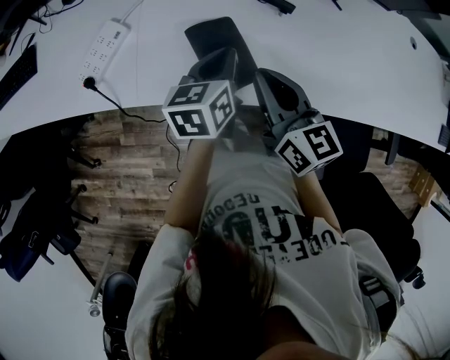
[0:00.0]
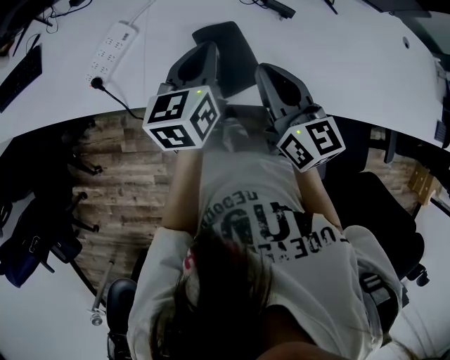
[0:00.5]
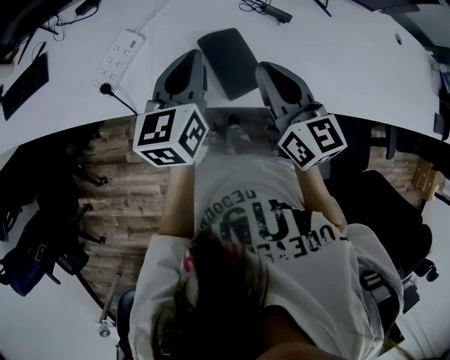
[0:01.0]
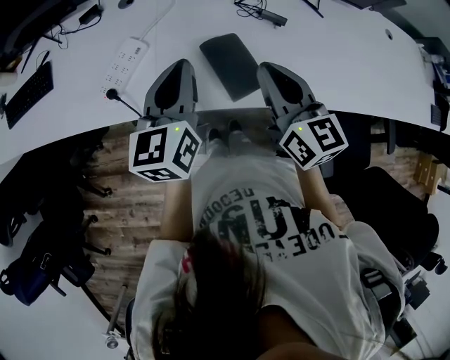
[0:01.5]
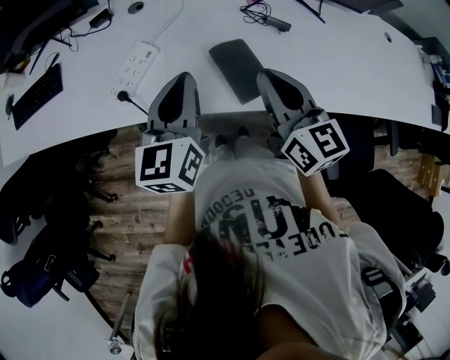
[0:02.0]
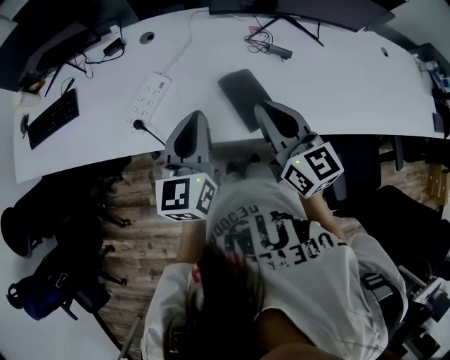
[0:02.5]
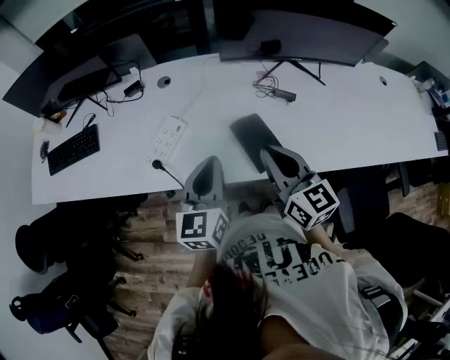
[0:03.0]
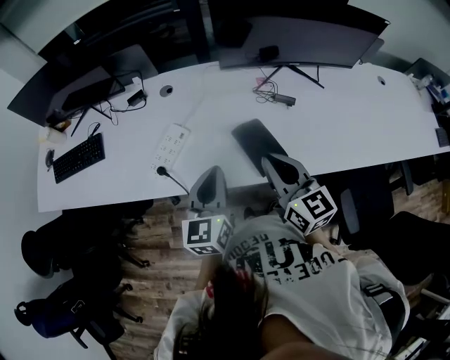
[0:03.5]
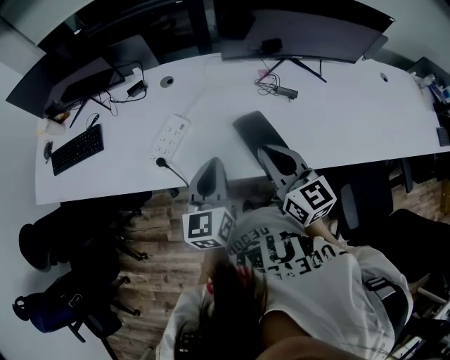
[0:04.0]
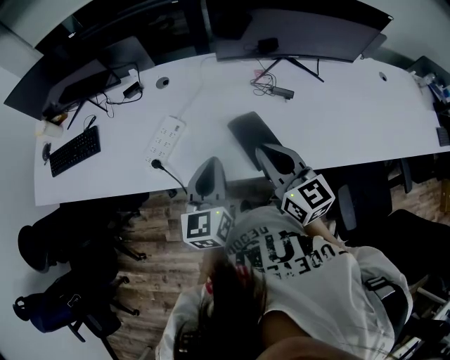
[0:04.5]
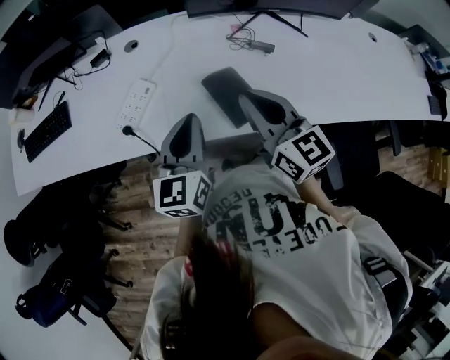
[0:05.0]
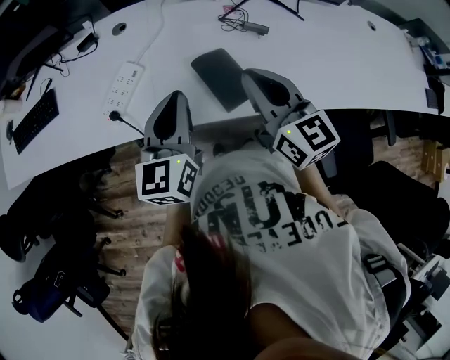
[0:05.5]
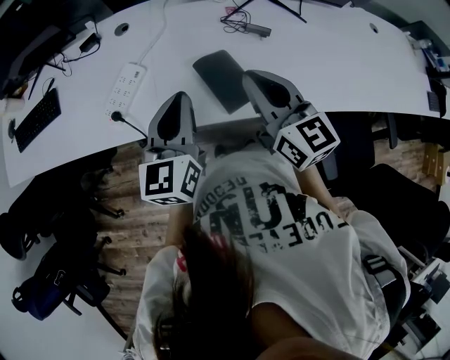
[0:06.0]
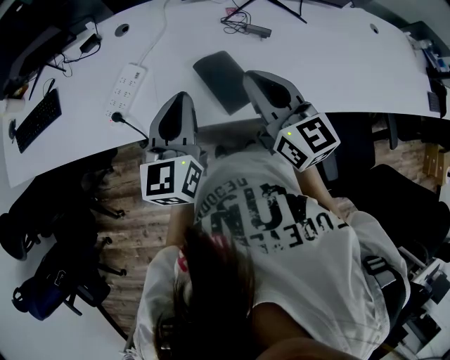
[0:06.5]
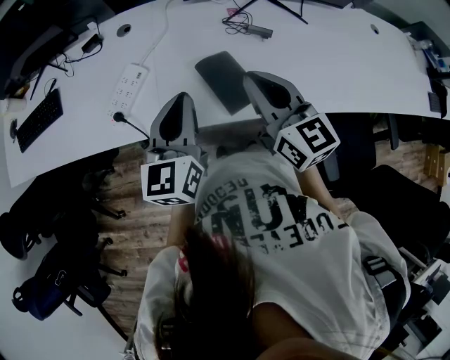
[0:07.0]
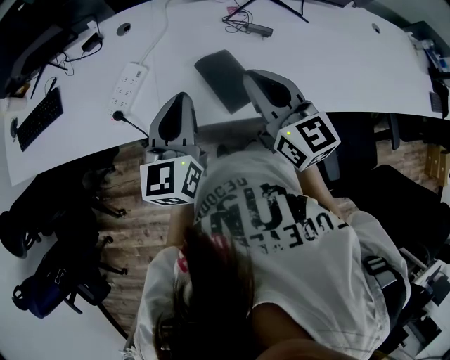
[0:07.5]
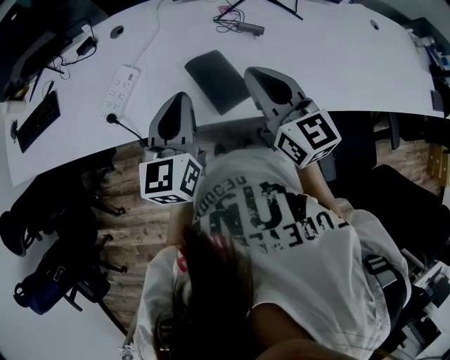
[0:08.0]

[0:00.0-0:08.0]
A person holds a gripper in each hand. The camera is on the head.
0:00.0 to 0:02.0: The right gripper goes roughly 10 cm upward and to the left. The left gripper moves to the left and upward, some 20 cm, and swivels some 30 degrees.
0:02.0 to 0:04.0: The grippers move only a little.
0:04.0 to 0:06.0: The right gripper moves to the right, roughly 5 cm.
0:06.0 to 0:08.0: The grippers stay close to where they were, moving slightly.

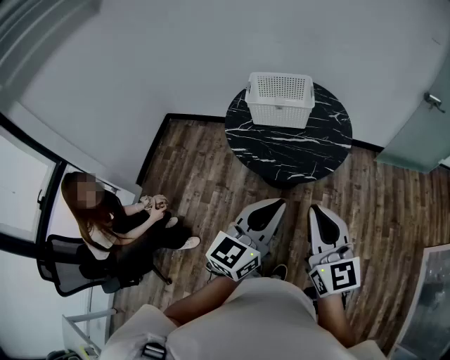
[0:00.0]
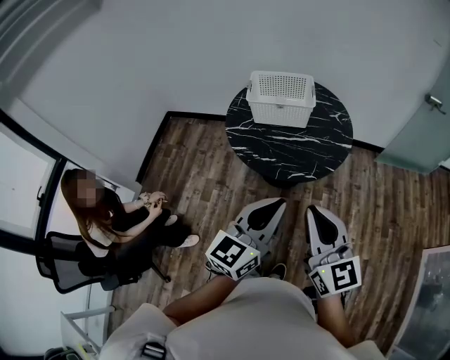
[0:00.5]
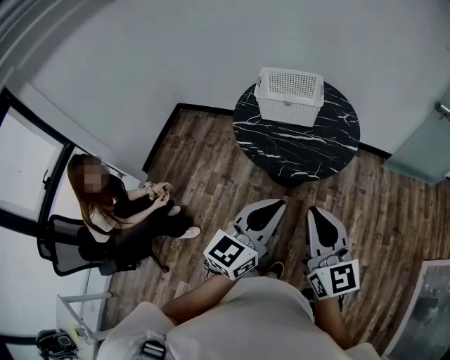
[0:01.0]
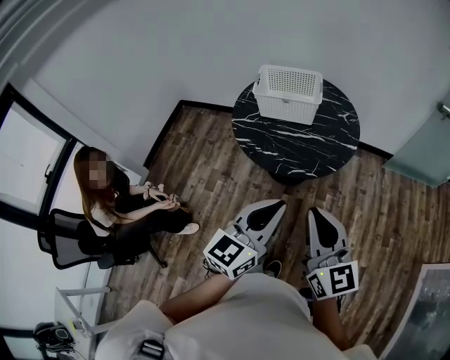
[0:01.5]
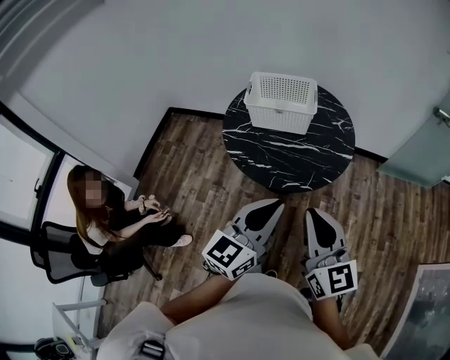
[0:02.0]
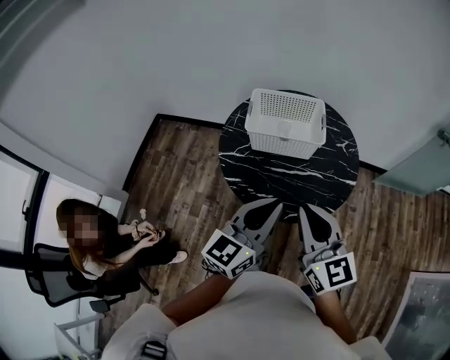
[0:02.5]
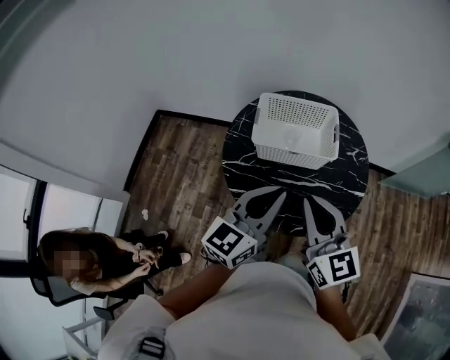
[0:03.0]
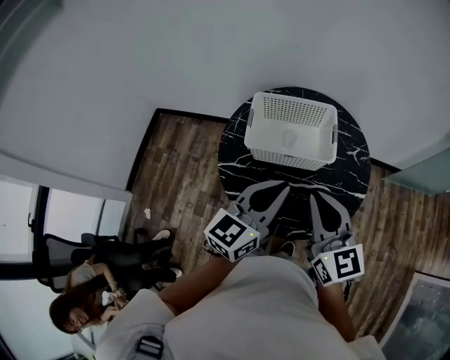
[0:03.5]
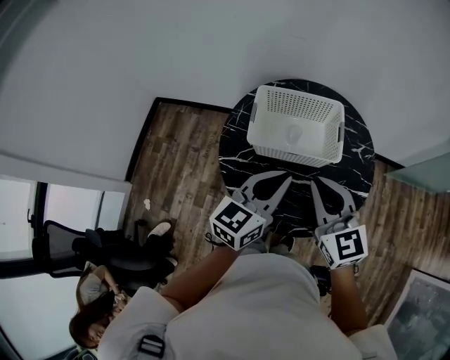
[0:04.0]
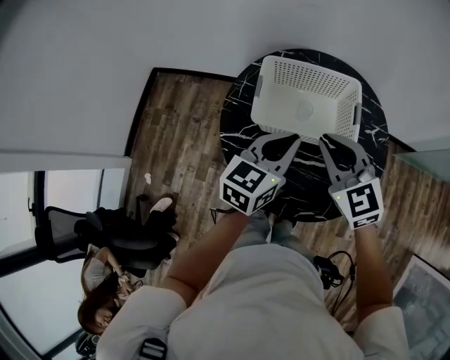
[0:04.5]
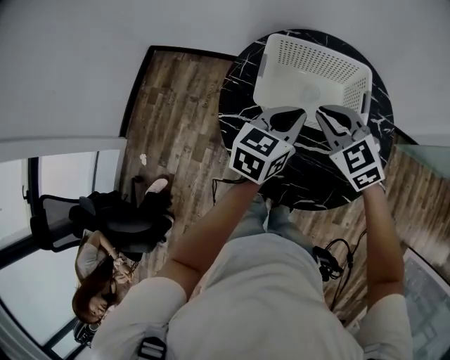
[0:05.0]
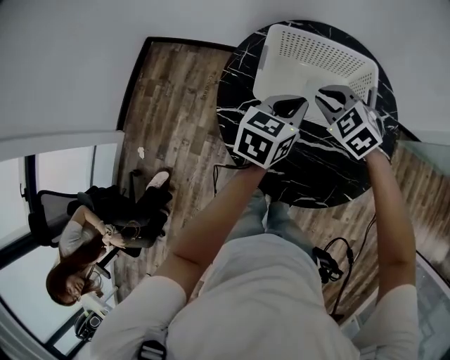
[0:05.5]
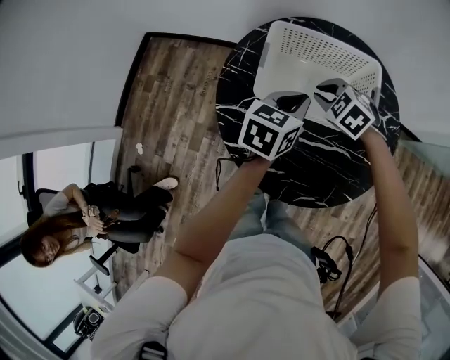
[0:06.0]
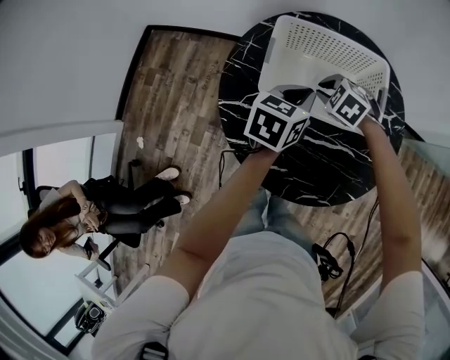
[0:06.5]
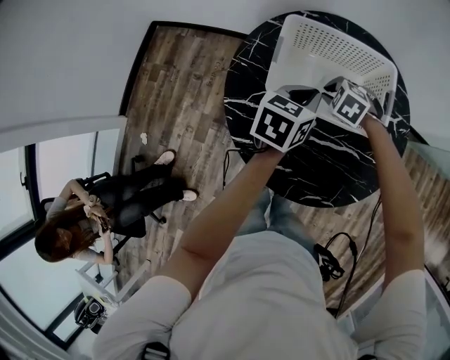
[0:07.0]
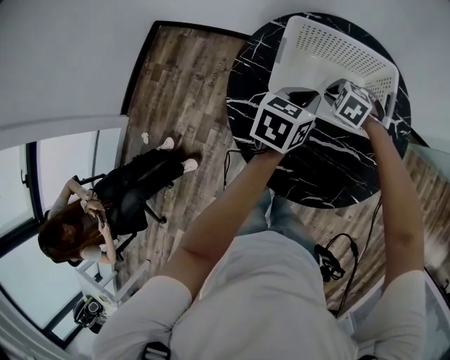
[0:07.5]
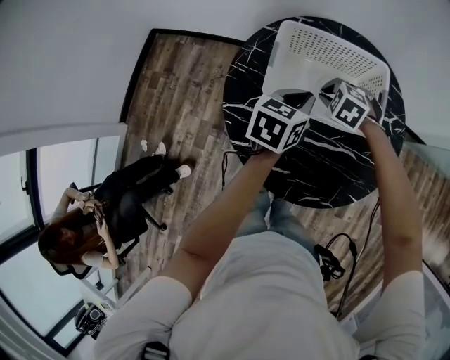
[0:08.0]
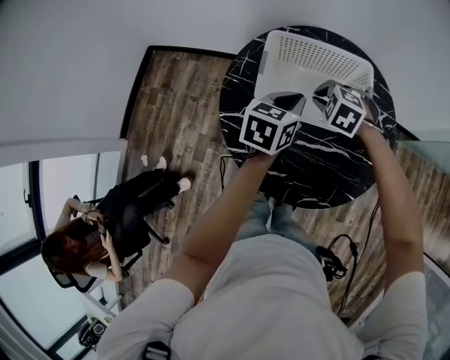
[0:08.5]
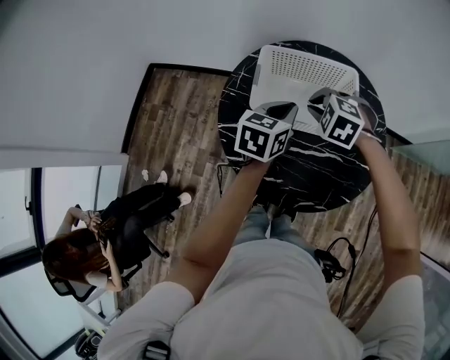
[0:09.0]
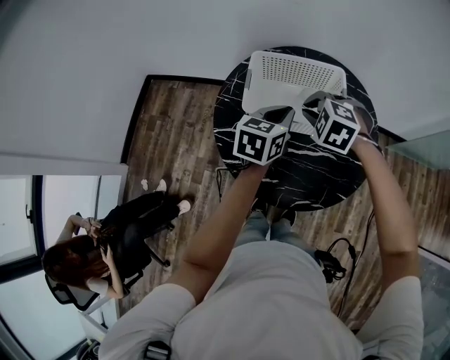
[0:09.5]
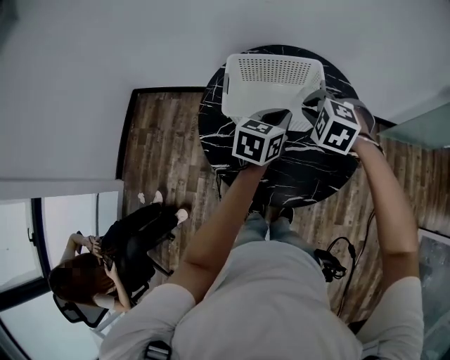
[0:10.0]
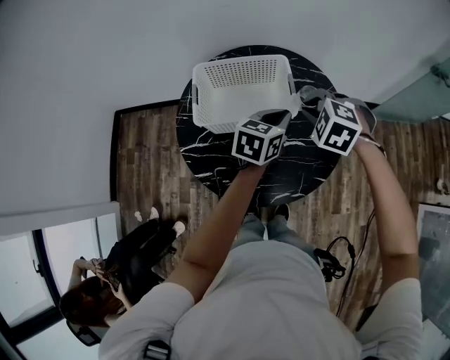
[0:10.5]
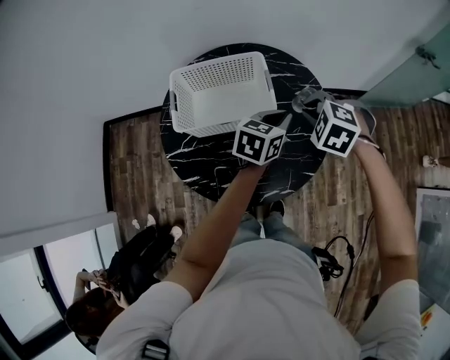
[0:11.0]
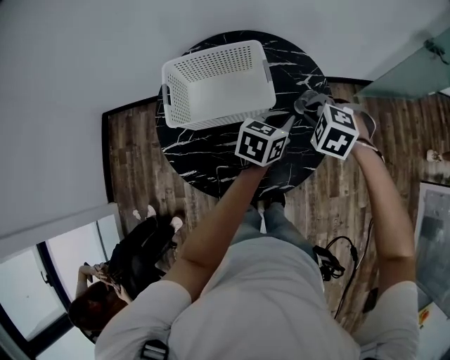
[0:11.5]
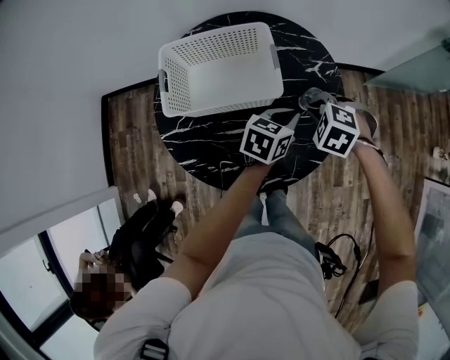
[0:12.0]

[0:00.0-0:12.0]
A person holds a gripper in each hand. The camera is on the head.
0:00.0 to 0:02.0: The grippers both shift forward by some 5 cm.
0:02.0 to 0:04.0: The two grippers go about 40 cm forward.
0:04.0 to 0:06.0: The two grippers go some 25 cm downward and forward. The left gripper changes its angle by roughly 20 degrees, while the right gripper angles its fingers downward, by roughly 50 degrees.
0:08.0 to 0:10.0: The left gripper shifts some 15 cm to the right, upward and backward. The right gripper travels upward, backward and to the right by roughly 20 cm.
0:10.0 to 0:12.0: The two grippers go roughly 20 cm to the right and downward.

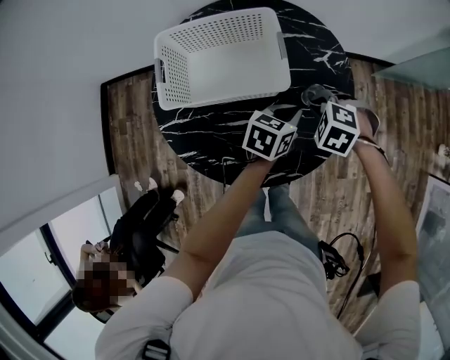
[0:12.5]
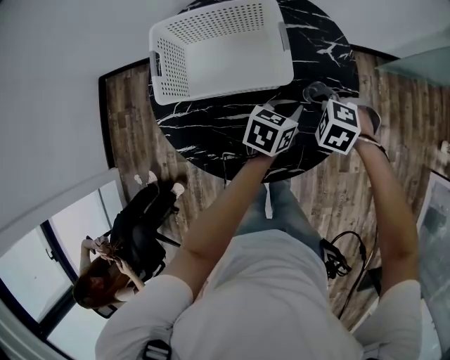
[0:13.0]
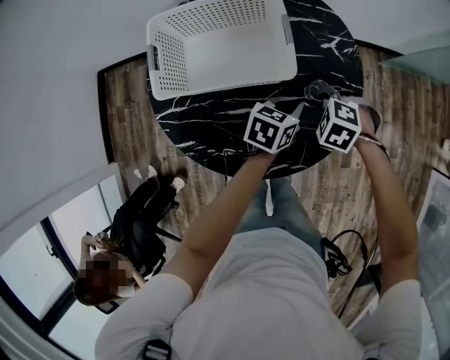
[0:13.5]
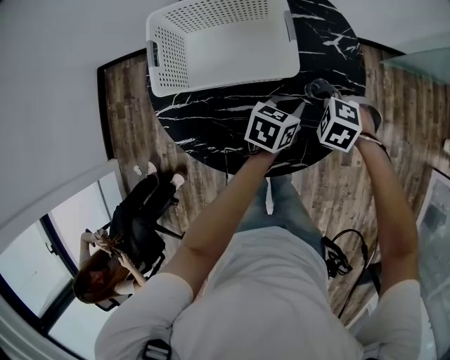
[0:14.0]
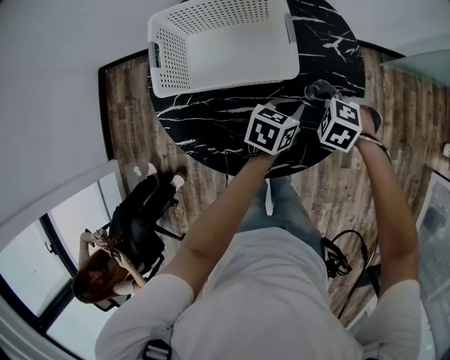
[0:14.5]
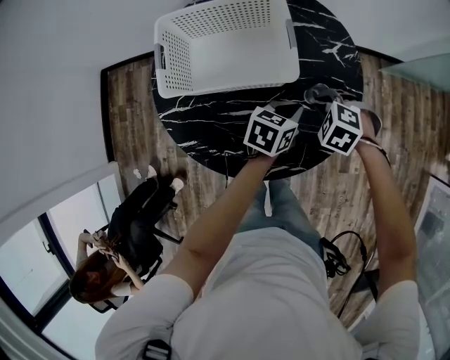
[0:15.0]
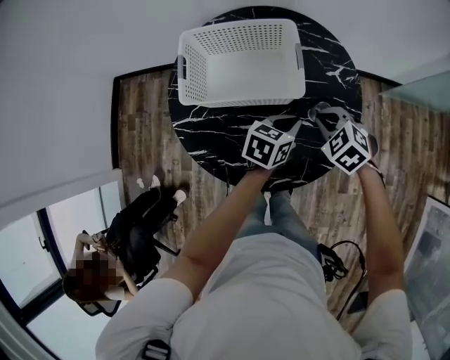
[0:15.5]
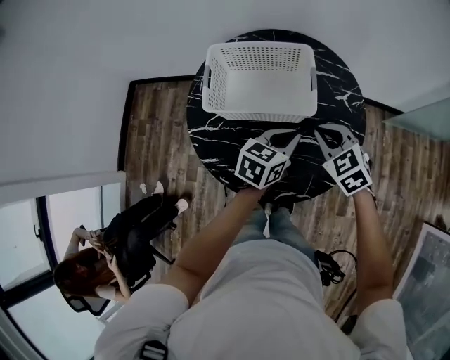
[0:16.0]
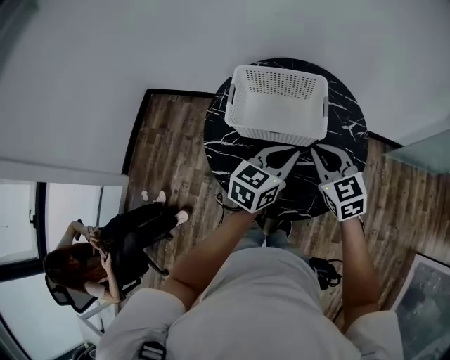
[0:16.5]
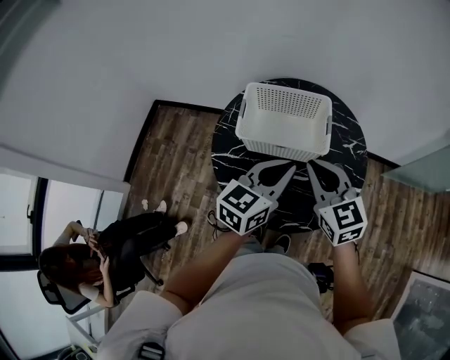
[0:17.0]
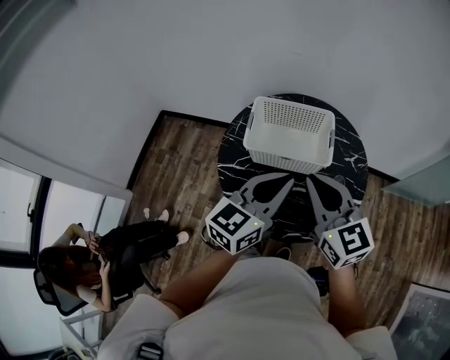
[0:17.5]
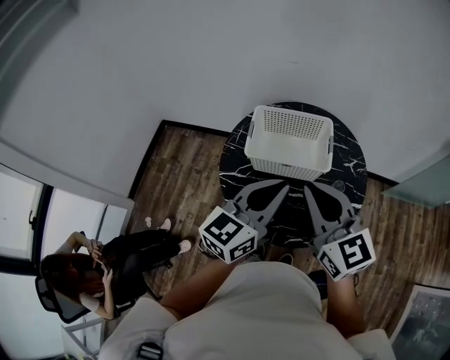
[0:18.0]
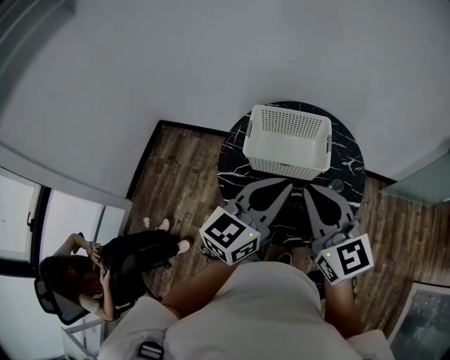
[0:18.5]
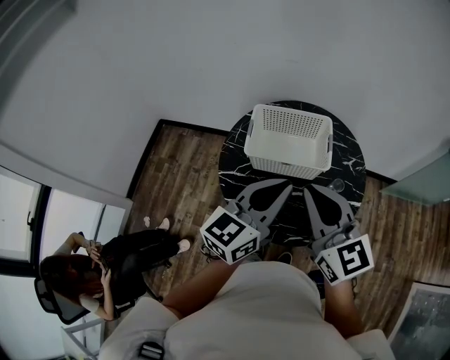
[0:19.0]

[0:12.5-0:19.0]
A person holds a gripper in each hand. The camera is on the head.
0:12.5 to 0:14.5: The right gripper is displaced downward by roughly 5 cm.
0:14.5 to 0:17.0: The two grippers go approximately 35 cm upward and to the left. The left gripper swivels roughly 40 degrees. Meanwhile the right gripper angles its fingers upward, by about 60 degrees.
0:17.0 to 0:19.0: The left gripper moves upward, approximately 10 cm; the right gripper is displaced upward and backward by about 15 cm.
